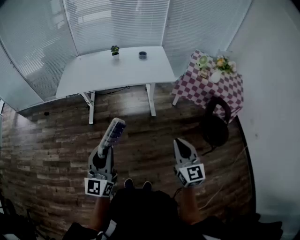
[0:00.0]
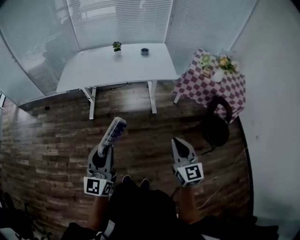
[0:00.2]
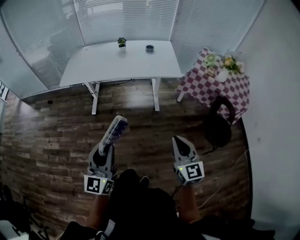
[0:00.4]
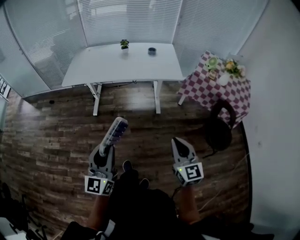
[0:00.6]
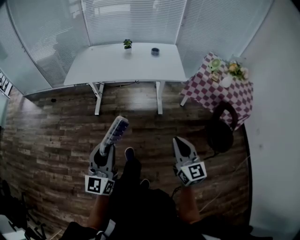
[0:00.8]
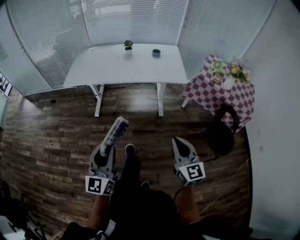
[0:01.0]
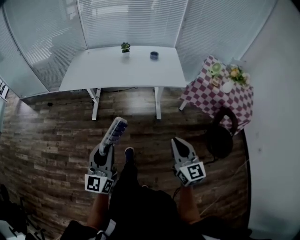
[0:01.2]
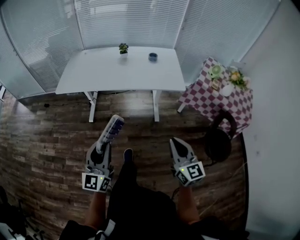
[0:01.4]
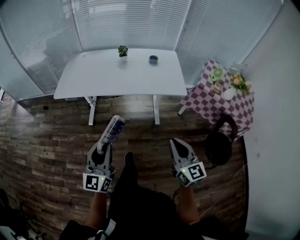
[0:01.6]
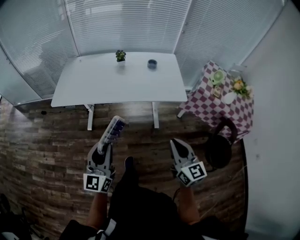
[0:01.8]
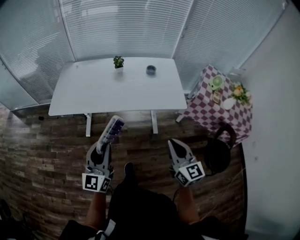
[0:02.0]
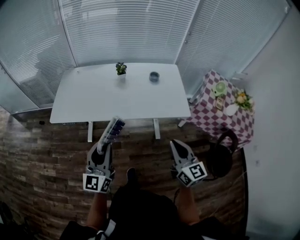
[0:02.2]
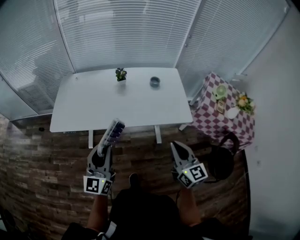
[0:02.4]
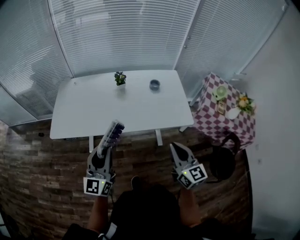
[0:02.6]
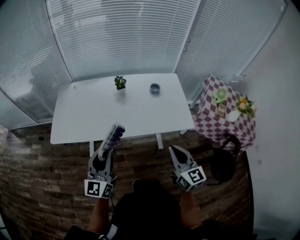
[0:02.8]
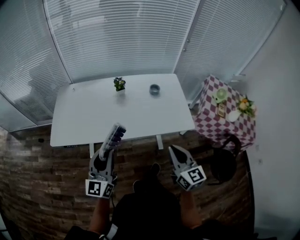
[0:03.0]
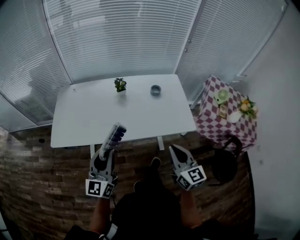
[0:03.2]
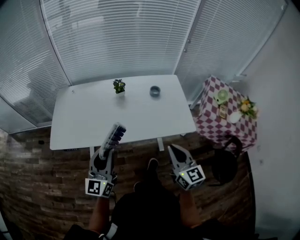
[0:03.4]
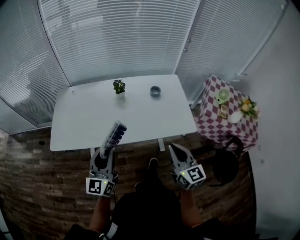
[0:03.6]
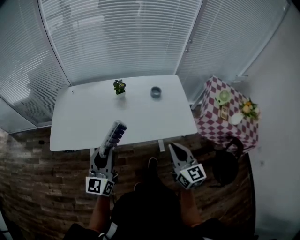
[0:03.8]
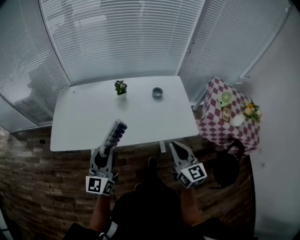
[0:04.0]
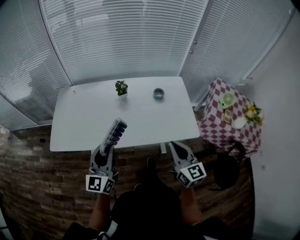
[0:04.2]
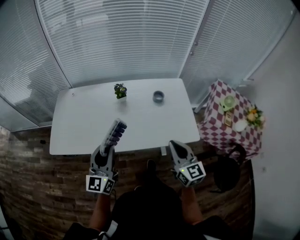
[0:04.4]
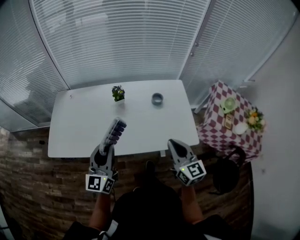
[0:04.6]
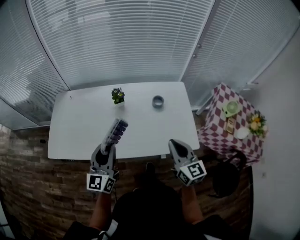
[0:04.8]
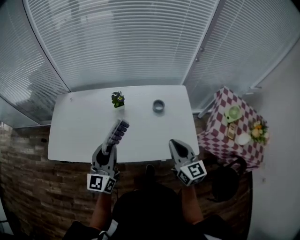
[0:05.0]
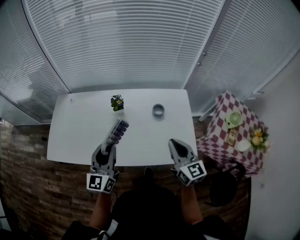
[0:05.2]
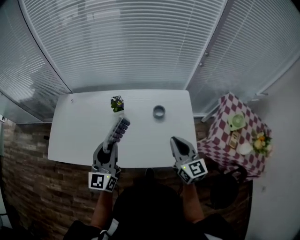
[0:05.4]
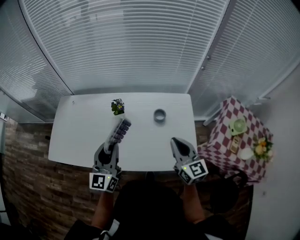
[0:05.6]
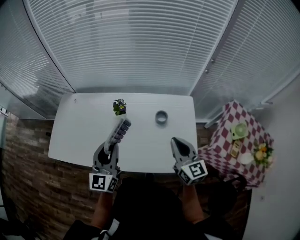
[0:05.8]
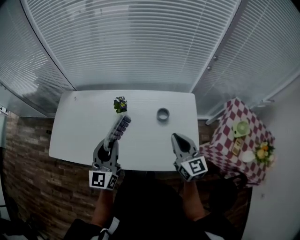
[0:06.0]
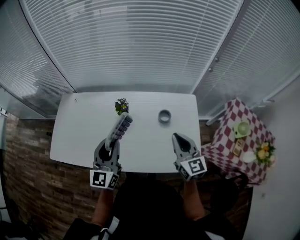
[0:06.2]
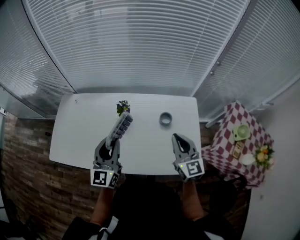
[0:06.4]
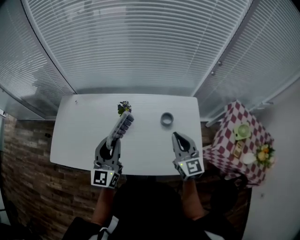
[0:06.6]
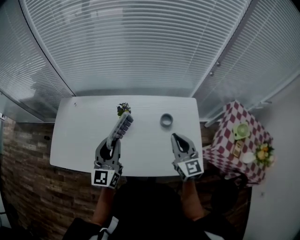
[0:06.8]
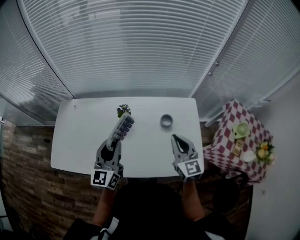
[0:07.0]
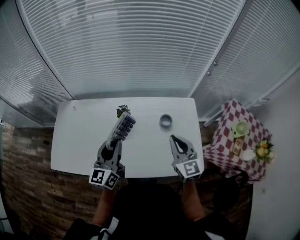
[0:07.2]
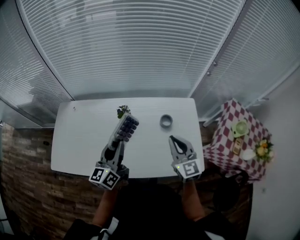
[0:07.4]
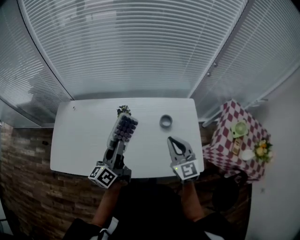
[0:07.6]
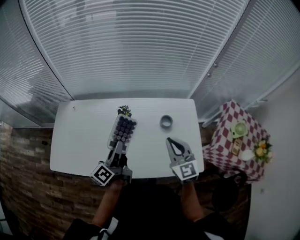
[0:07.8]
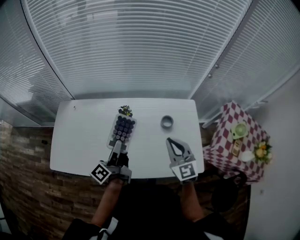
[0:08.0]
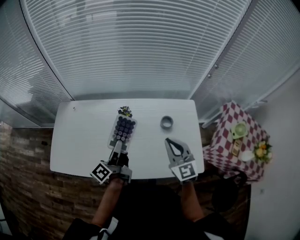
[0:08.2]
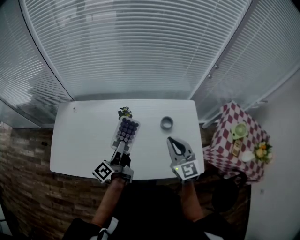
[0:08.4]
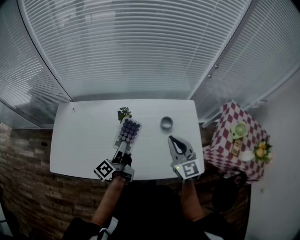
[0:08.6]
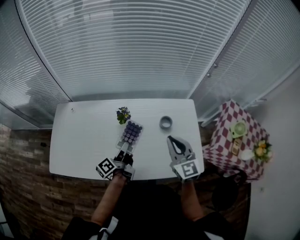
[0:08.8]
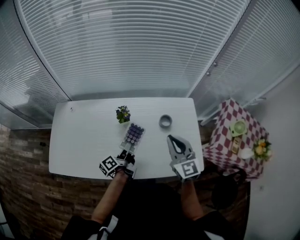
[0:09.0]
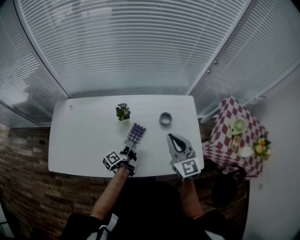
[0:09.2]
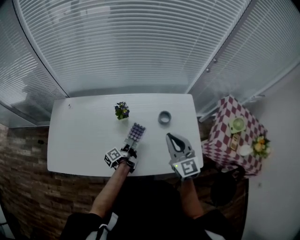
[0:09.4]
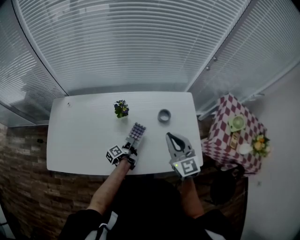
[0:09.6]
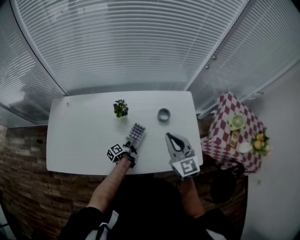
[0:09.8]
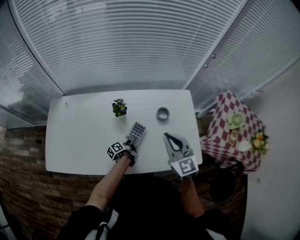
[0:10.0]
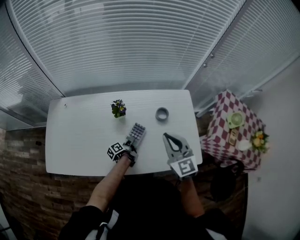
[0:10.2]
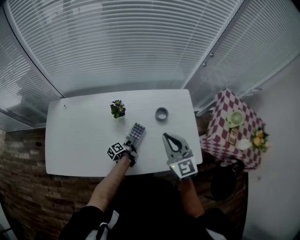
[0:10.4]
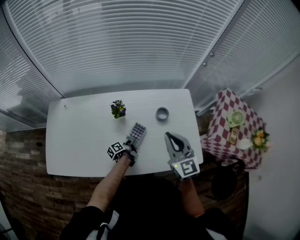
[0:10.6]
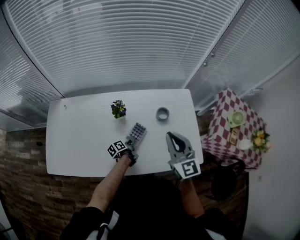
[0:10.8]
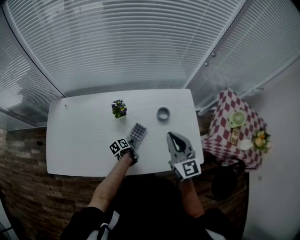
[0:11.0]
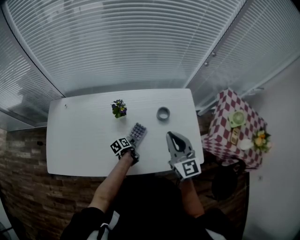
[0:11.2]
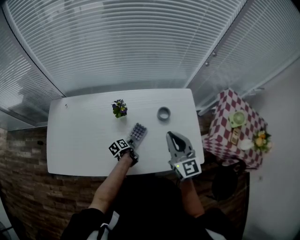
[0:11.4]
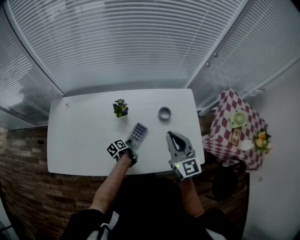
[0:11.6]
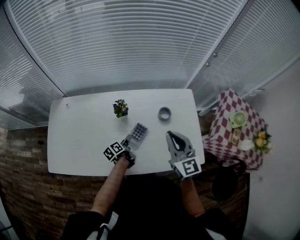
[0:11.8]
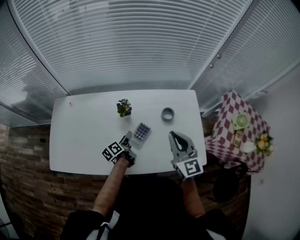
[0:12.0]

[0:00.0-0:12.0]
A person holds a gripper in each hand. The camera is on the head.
0:00.0 to 0:01.6: Both grippers travel together forward, about 15 cm.
0:01.6 to 0:03.0: The two grippers go some 25 cm forward.
0:03.0 to 0:04.4: The grippers both shift forward by about 10 cm.
0:04.4 to 0:06.0: The right gripper goes some 20 cm forward, while the left gripper heads forward and to the right, covering roughly 15 cm.
0:06.0 to 0:07.6: The left gripper heads forward, covering about 5 cm, and rotates around the line of its fingers by roughly 40 degrees, counterclockwise from behind, while the right gripper moves to the left, about 5 cm.
0:07.6 to 0:09.0: The left gripper heads downward, covering roughly 15 cm, and changes its angle by some 40 degrees.
0:09.0 to 0:10.4: The left gripper shifts about 20 cm downward.
0:10.4 to 0:12.0: The left gripper goes approximately 10 cm upward and to the left, and opens up.

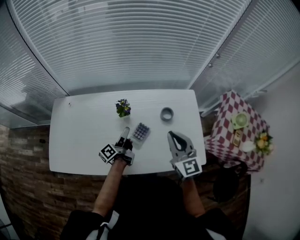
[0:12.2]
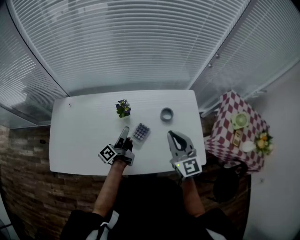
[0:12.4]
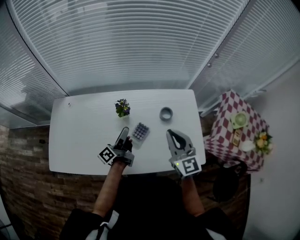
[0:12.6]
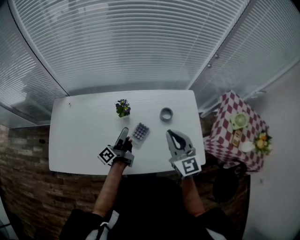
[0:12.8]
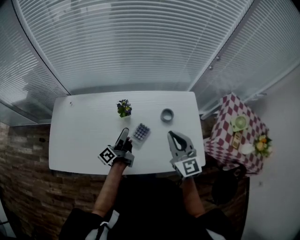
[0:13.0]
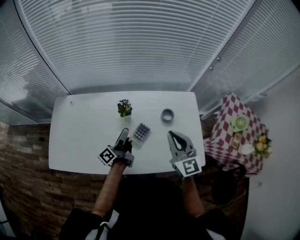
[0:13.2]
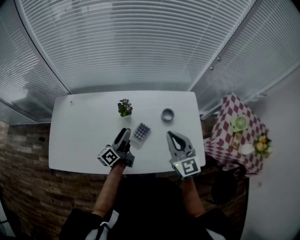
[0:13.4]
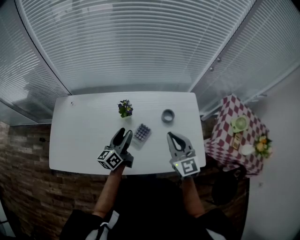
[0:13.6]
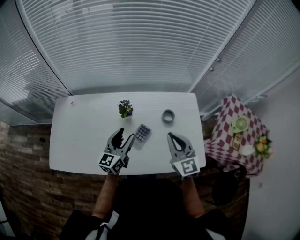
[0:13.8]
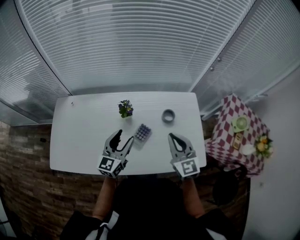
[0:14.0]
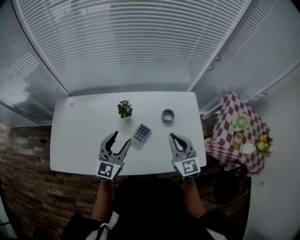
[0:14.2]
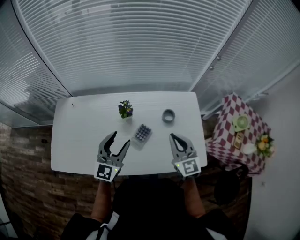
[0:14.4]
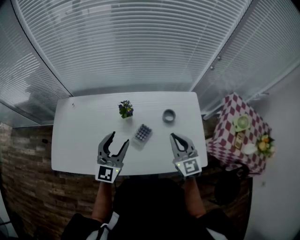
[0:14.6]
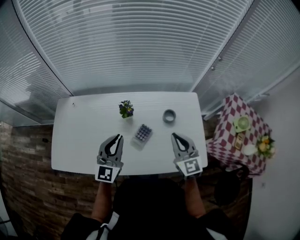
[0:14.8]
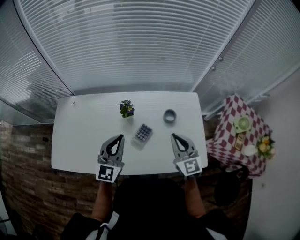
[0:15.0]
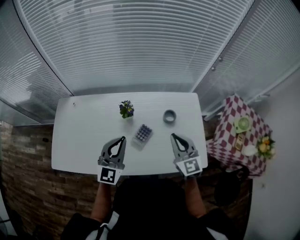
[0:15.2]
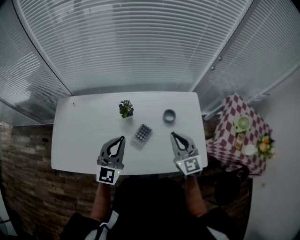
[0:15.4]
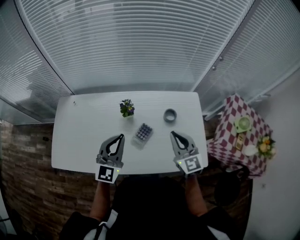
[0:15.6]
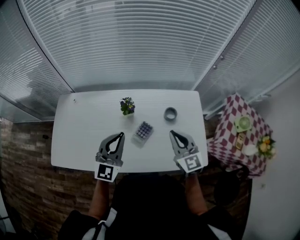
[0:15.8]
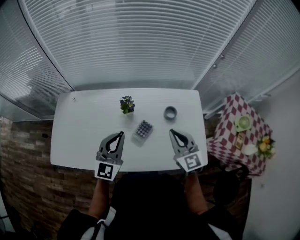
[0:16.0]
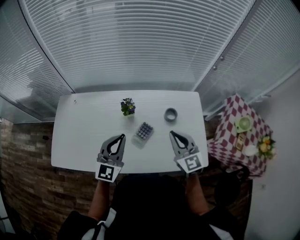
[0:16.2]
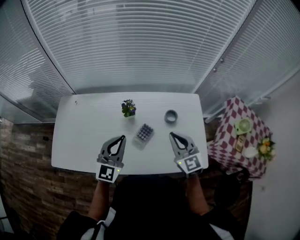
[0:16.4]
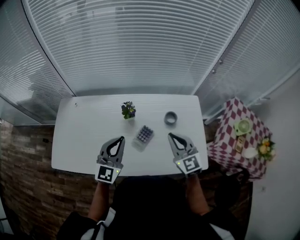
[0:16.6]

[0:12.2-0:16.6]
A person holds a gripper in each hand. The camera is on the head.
0:12.2 to 0:13.6: The left gripper goes approximately 5 cm upward, and rotates some 40 degrees.
0:13.6 to 0:15.2: The left gripper is displaced upward by some 10 cm, twists roughly 60 degrees clockwise, seen from behind, and closes up.
0:15.2 to 0:16.6: The grippers move only a little.

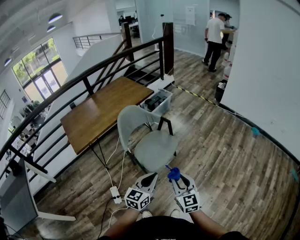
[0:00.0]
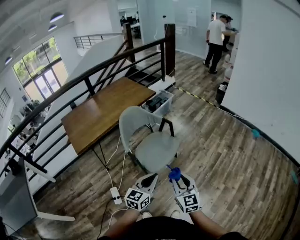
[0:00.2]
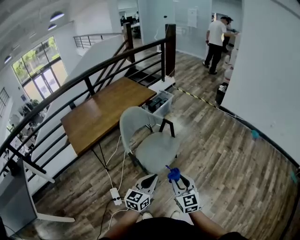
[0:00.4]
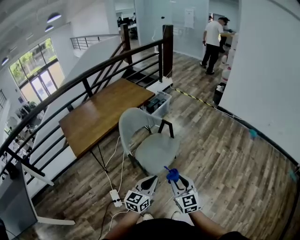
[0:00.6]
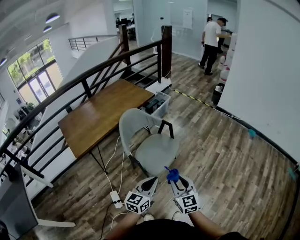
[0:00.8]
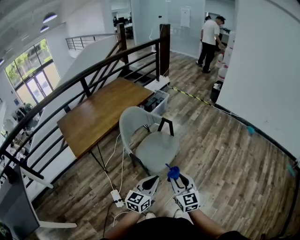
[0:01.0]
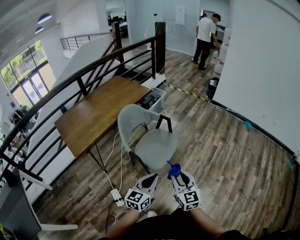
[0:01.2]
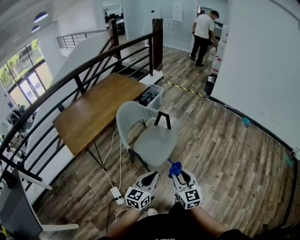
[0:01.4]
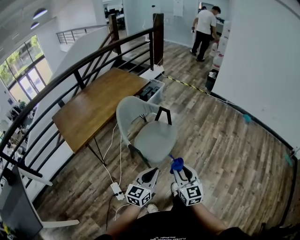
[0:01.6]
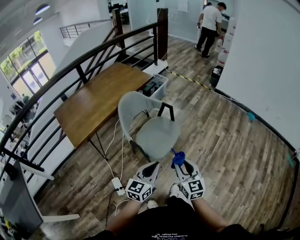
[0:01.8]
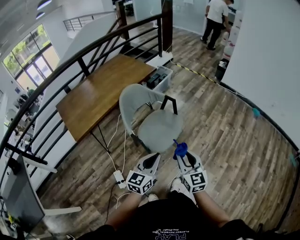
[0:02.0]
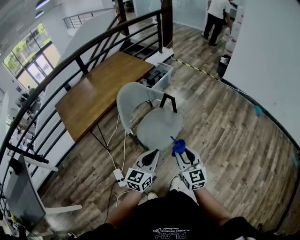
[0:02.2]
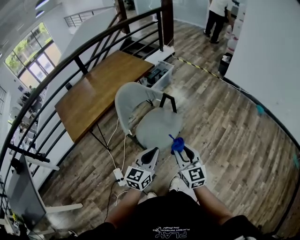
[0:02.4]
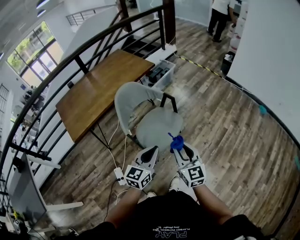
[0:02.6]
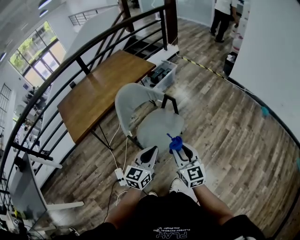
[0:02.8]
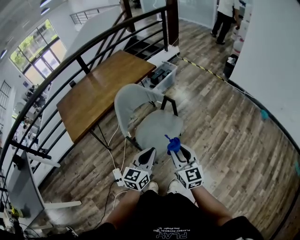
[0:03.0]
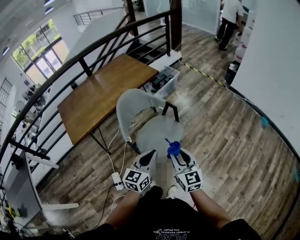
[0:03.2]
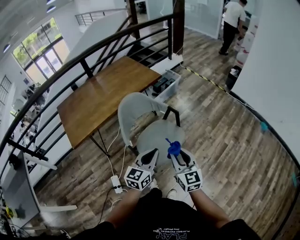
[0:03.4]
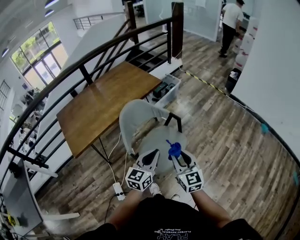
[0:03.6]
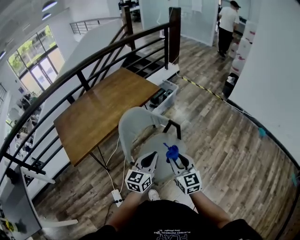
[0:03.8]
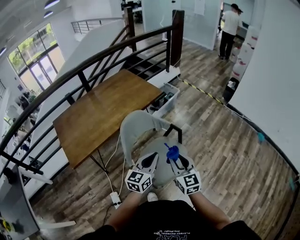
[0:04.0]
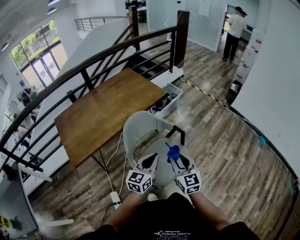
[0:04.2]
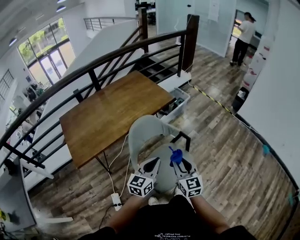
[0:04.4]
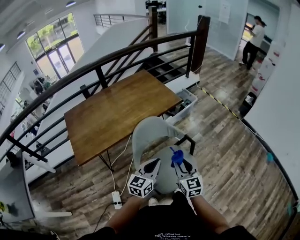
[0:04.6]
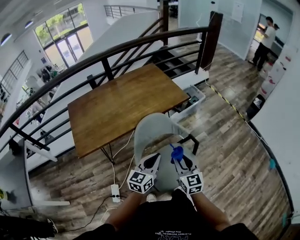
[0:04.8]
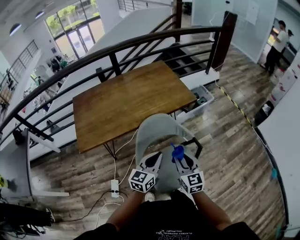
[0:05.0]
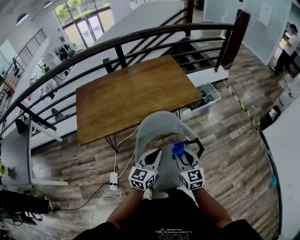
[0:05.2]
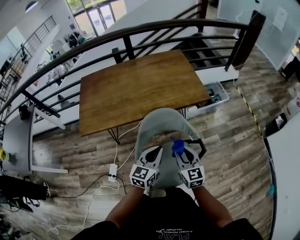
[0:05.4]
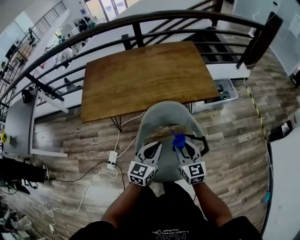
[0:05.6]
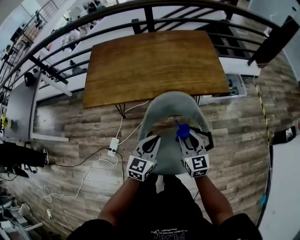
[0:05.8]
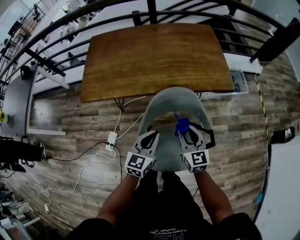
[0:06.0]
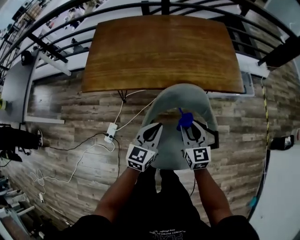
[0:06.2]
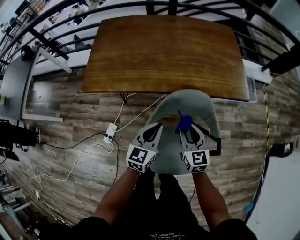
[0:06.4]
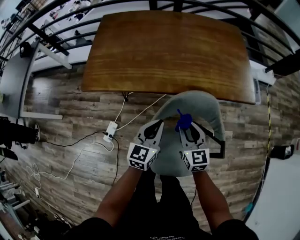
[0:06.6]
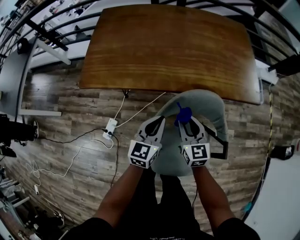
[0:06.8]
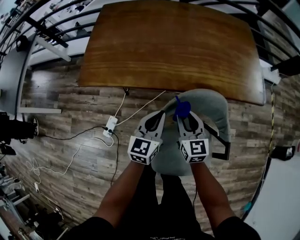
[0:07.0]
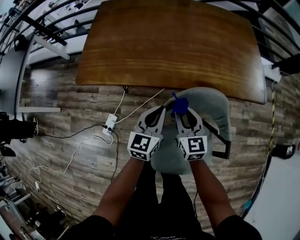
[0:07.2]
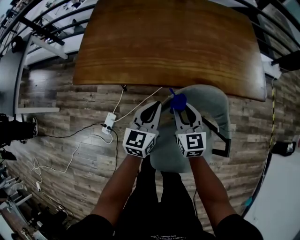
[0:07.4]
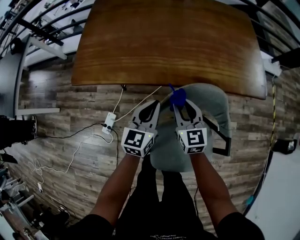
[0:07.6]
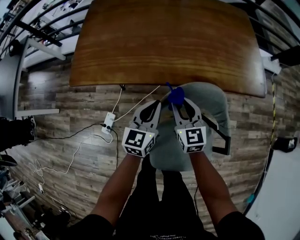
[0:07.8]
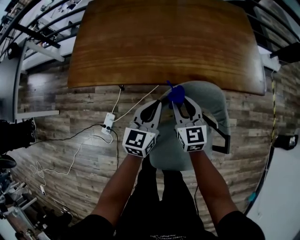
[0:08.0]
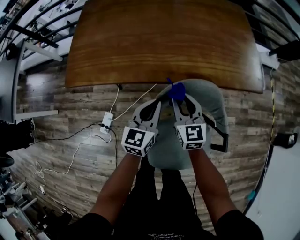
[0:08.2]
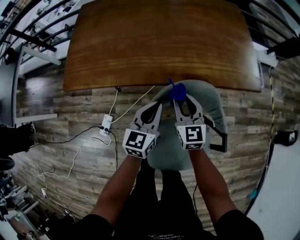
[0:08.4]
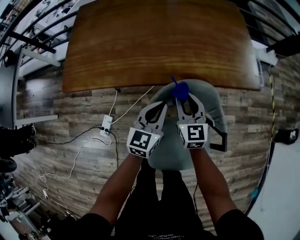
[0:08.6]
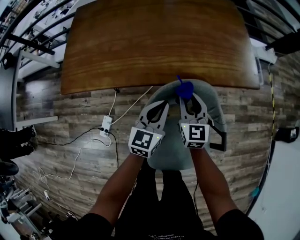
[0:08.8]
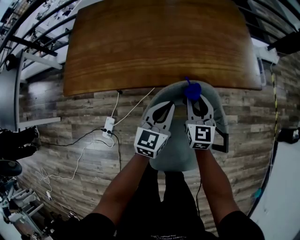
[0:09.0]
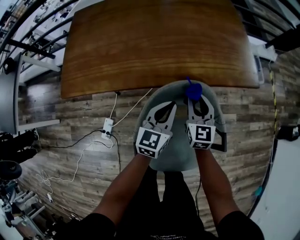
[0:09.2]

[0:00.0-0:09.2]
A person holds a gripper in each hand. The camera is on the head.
0:00.0 to 0:01.6: Both grippers travel together to the left, some 10 cm.
0:01.6 to 0:03.0: The left gripper shifts about 15 cm forward and to the right, while the right gripper shifts some 15 cm forward.
0:03.0 to 0:04.6: The grippers both shift forward and to the left by about 25 cm.
0:04.6 to 0:06.2: The right gripper changes place by roughly 25 cm, and turns by roughly 30 degrees. Meanwhile the left gripper changes place by about 20 cm, and changes its angle by some 40 degrees.
0:06.2 to 0:07.6: The grippers both shift forward, to the left and downward by approximately 15 cm.
0:07.6 to 0:09.2: Both grippers travel together to the right, roughly 15 cm.
